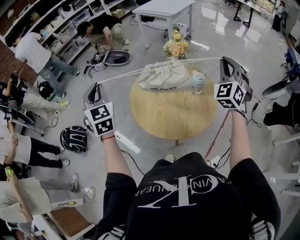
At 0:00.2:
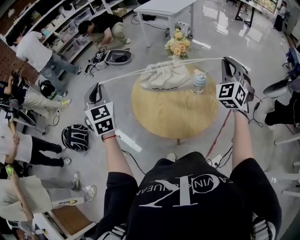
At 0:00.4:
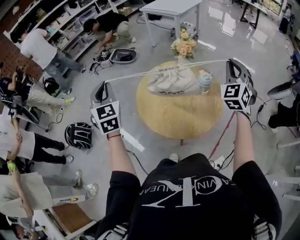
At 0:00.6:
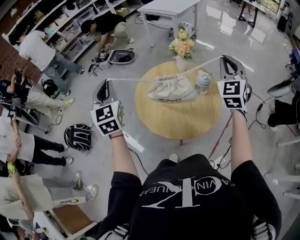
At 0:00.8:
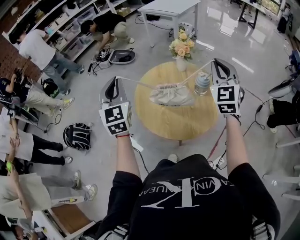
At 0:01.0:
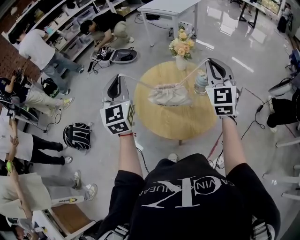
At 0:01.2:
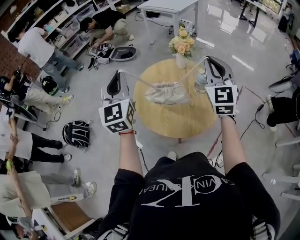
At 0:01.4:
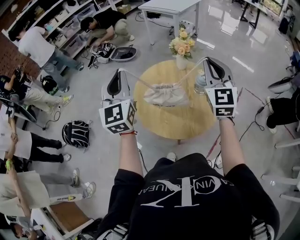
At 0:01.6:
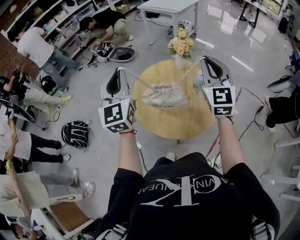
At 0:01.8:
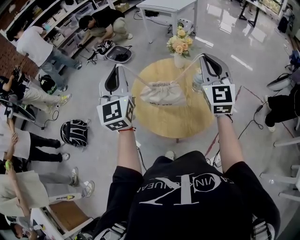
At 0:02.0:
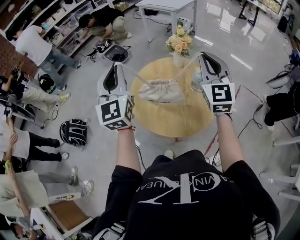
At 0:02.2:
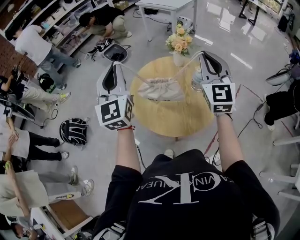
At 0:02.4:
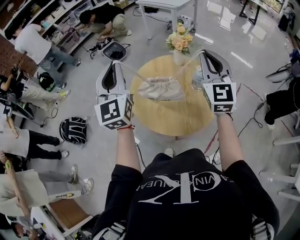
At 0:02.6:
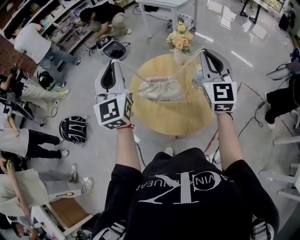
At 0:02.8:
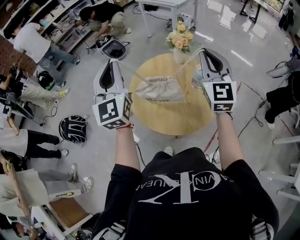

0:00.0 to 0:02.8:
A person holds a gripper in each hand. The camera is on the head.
0:00.0 to 0:01.4: The left gripper is displaced to the right by some 10 cm, and rotates approximately 30 degrees. The right gripper is displaced to the left by approximately 10 cm, and swivels approximately 40 degrees.
0:01.4 to 0:02.8: The grippers move only a little.

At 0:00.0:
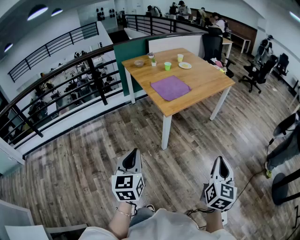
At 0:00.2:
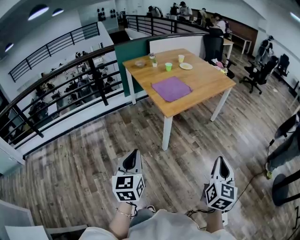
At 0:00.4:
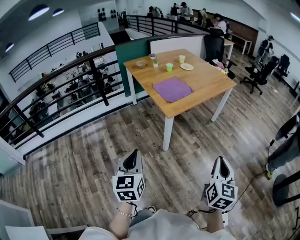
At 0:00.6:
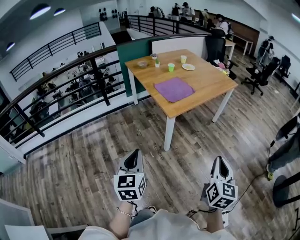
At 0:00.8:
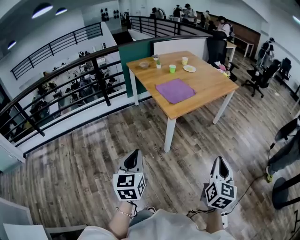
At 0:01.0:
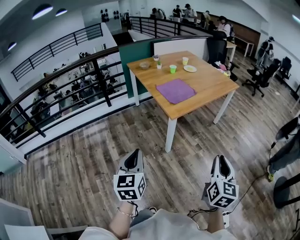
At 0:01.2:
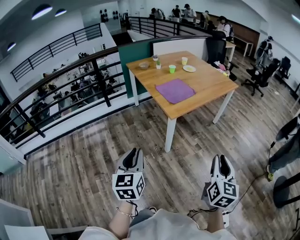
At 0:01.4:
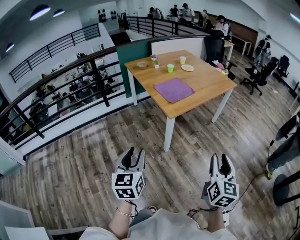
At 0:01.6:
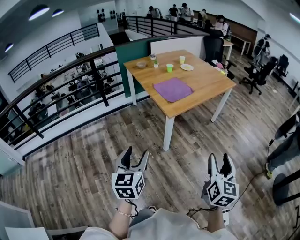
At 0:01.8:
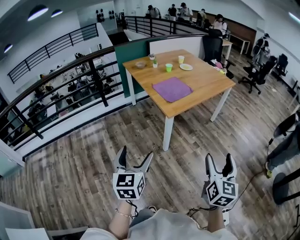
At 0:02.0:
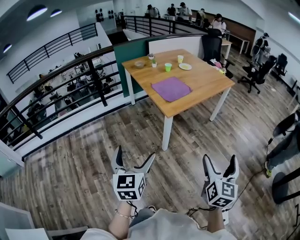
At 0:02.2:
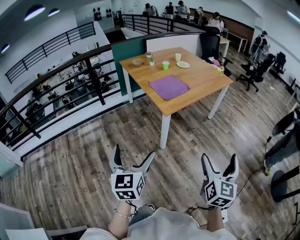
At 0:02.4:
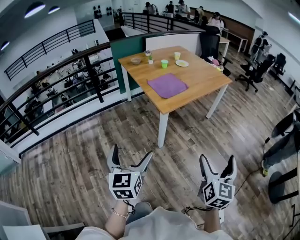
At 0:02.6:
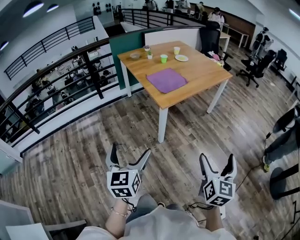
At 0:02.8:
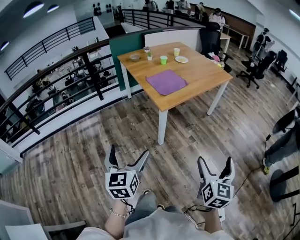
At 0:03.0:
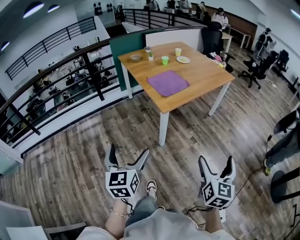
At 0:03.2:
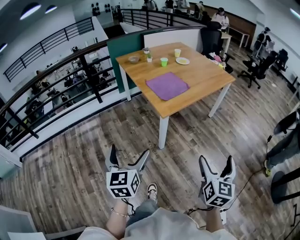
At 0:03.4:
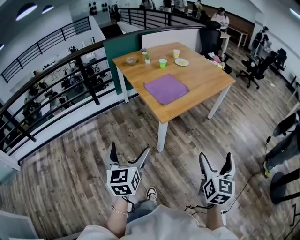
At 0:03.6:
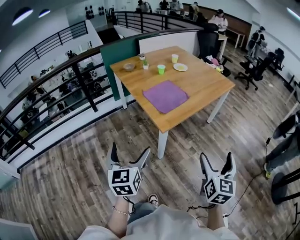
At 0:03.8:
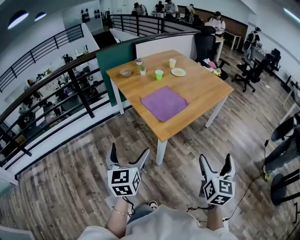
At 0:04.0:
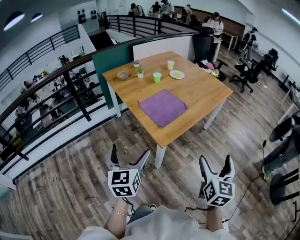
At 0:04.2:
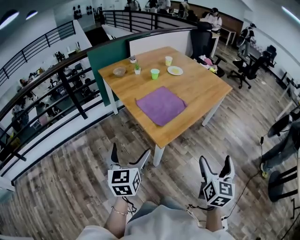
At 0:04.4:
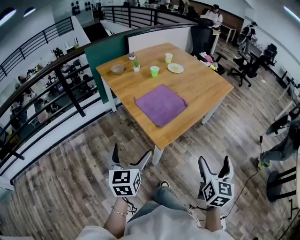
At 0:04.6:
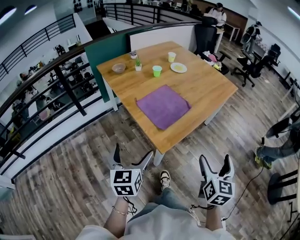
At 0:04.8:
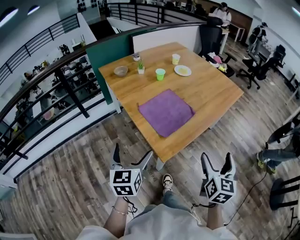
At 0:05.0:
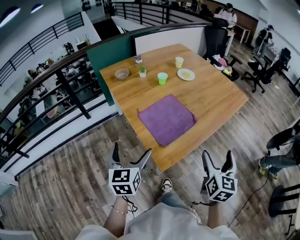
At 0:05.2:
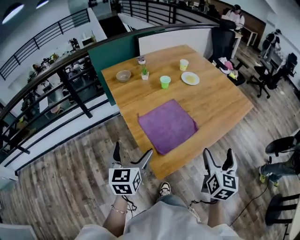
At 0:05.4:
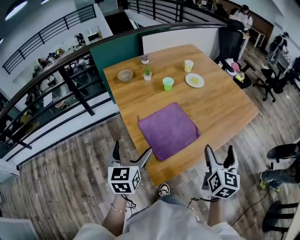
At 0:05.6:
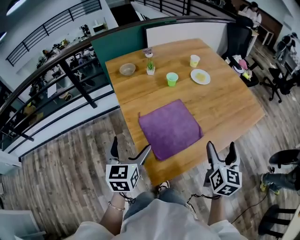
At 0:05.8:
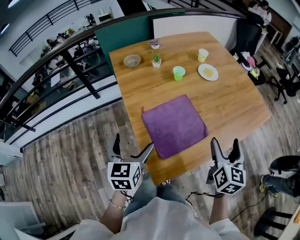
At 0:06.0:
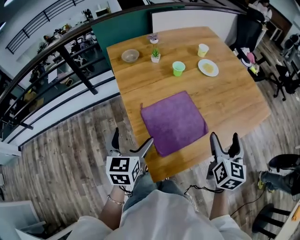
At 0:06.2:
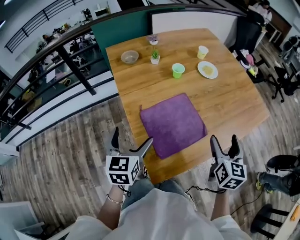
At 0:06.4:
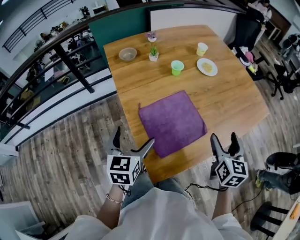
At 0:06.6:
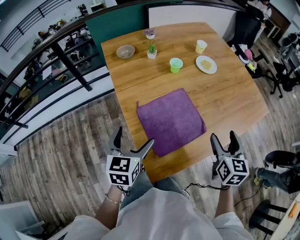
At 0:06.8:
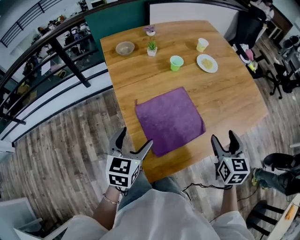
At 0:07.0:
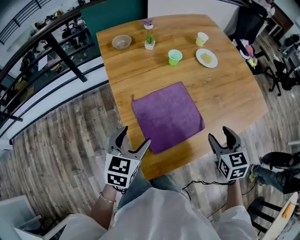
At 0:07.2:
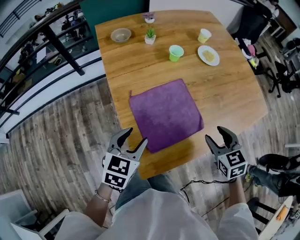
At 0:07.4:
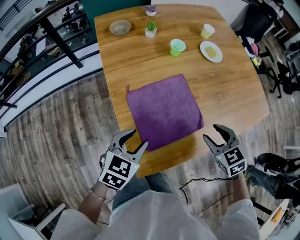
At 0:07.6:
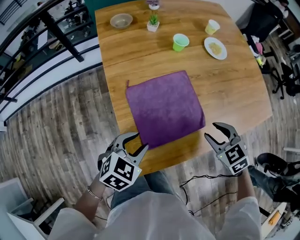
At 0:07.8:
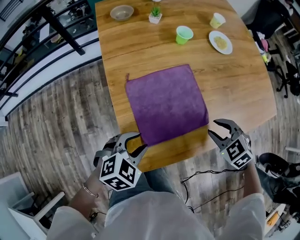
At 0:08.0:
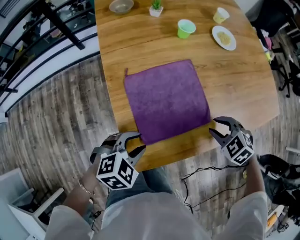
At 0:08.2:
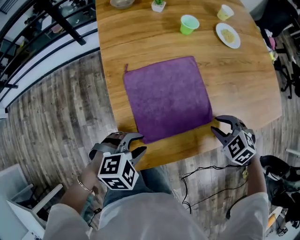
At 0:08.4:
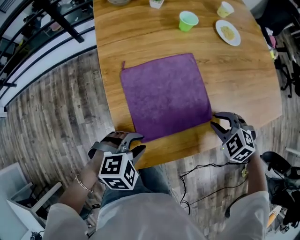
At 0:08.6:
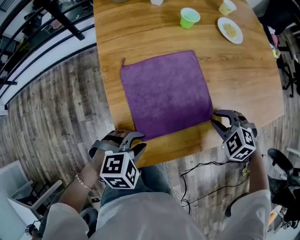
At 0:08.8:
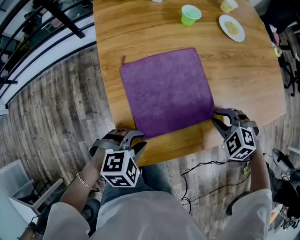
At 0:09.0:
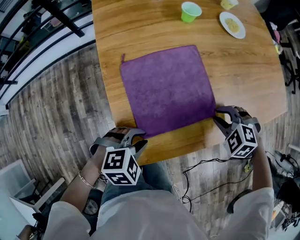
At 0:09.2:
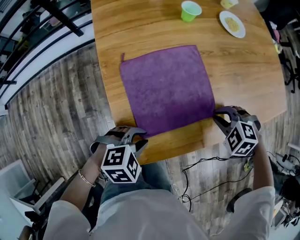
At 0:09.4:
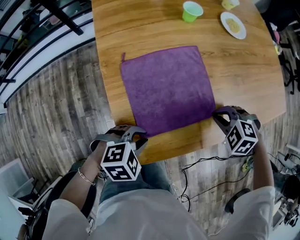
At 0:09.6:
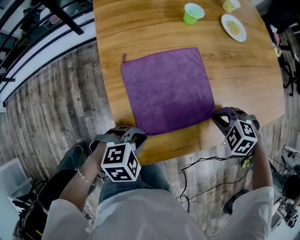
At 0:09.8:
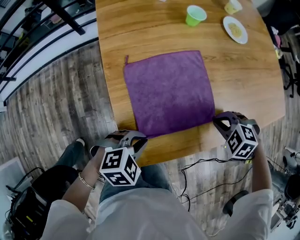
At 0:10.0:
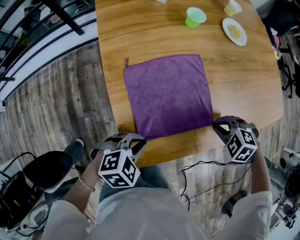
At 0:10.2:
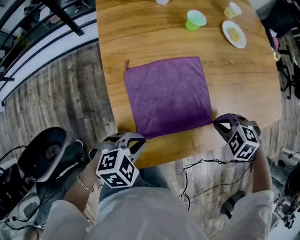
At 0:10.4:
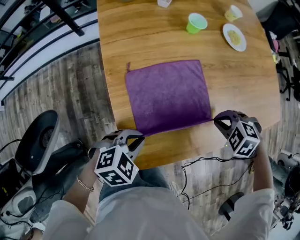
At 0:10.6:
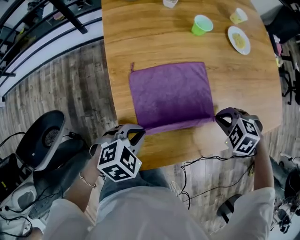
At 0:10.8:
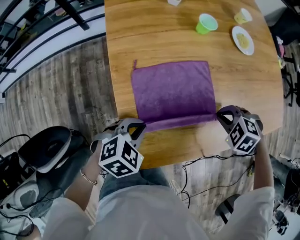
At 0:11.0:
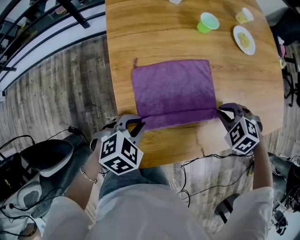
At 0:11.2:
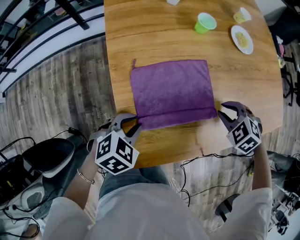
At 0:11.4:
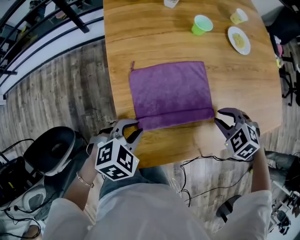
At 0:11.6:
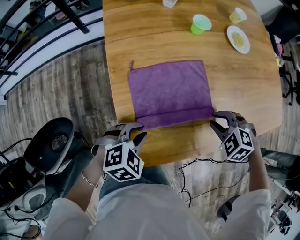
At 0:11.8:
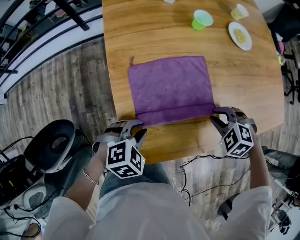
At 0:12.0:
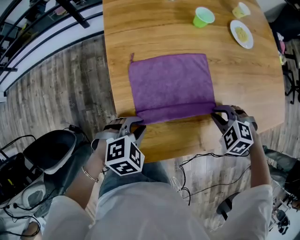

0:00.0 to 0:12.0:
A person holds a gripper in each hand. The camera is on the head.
0:00.0 to 0:01.6: The right gripper opens up, while the left gripper opens its fingers.
0:01.6 to 0:03.0: The right gripper opens. Meanwhile the left gripper opens up.
0:03.0 to 0:04.4: Both grippers travel together forward, some 30 cm.
0:04.4 to 0:06.0: Both grippers travel together forward, roughly 35 cm.
0:06.0 to 0:07.6: The right gripper is displaced downward by roughly 15 cm, angles its fingers downward, by roughly 40 degrees, and closes. Meanwhile the left gripper goes approximately 15 cm downward and to the right, changes its angle by about 40 degrees, and closes.
0:07.6 to 0:09.0: The two grippers go about 10 cm downward. The left gripper turns by approximately 30 degrees. The right gripper swivels roughly 40 degrees.
0:09.0 to 0:10.4: The left gripper ends up some 5 cm from where it was.
0:10.4 to 0:12.0: There are only small adjustments of the grippers.

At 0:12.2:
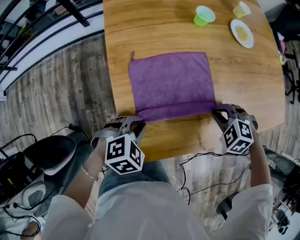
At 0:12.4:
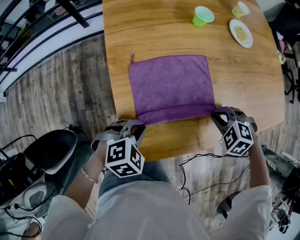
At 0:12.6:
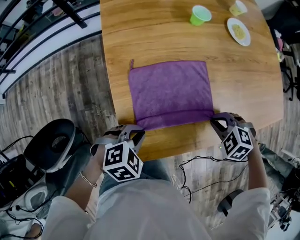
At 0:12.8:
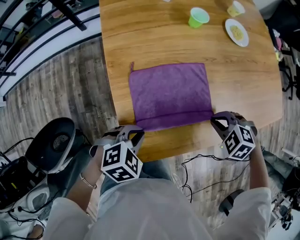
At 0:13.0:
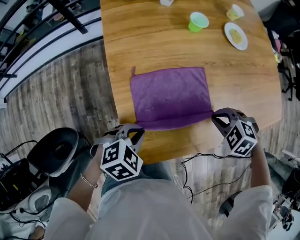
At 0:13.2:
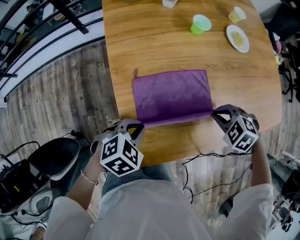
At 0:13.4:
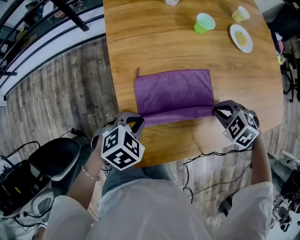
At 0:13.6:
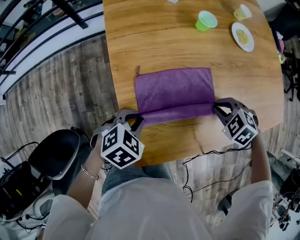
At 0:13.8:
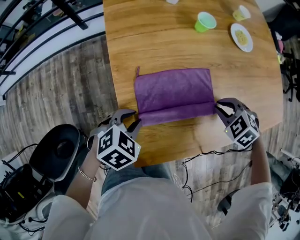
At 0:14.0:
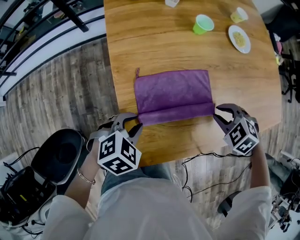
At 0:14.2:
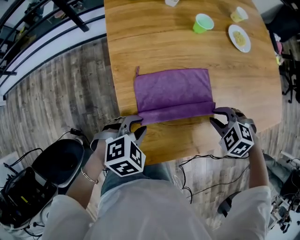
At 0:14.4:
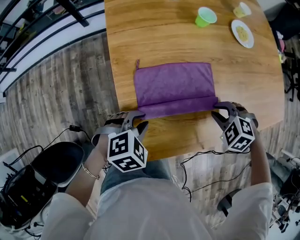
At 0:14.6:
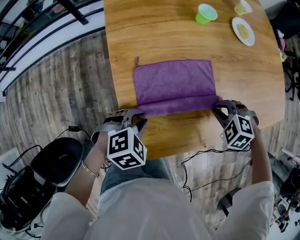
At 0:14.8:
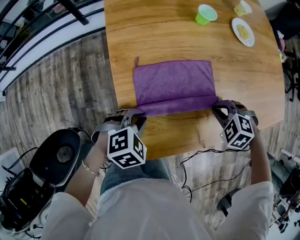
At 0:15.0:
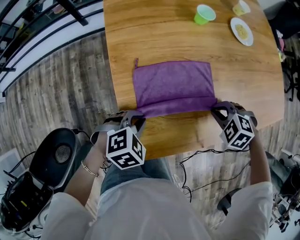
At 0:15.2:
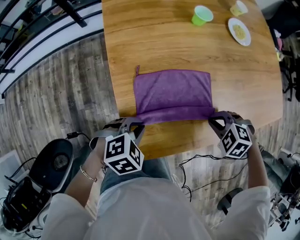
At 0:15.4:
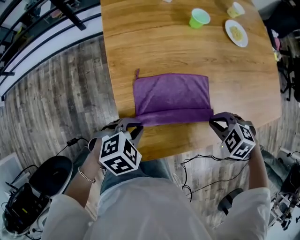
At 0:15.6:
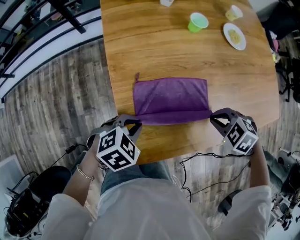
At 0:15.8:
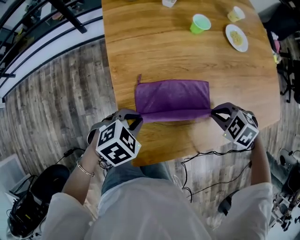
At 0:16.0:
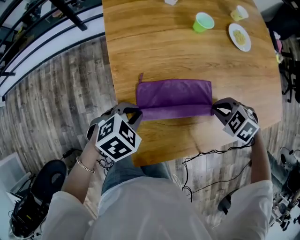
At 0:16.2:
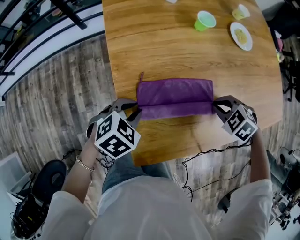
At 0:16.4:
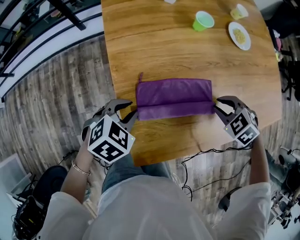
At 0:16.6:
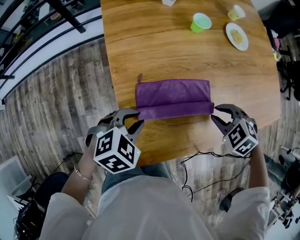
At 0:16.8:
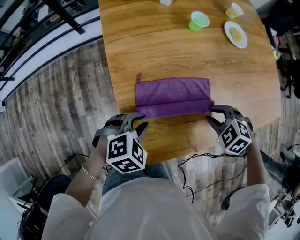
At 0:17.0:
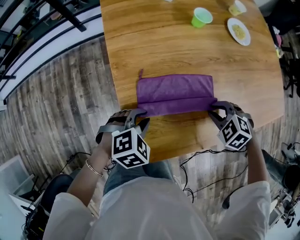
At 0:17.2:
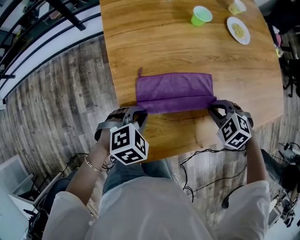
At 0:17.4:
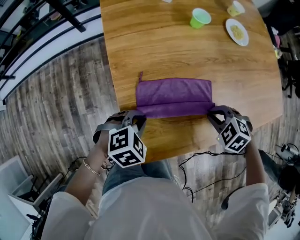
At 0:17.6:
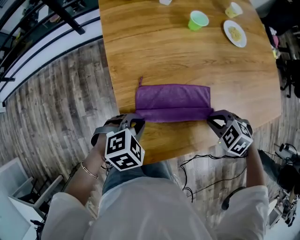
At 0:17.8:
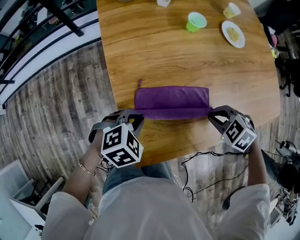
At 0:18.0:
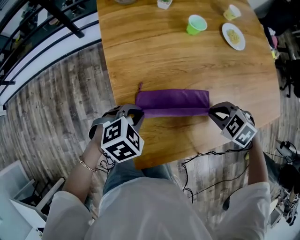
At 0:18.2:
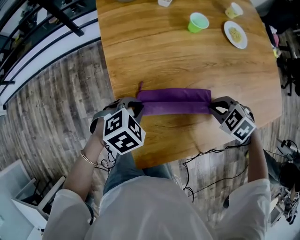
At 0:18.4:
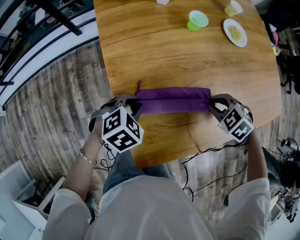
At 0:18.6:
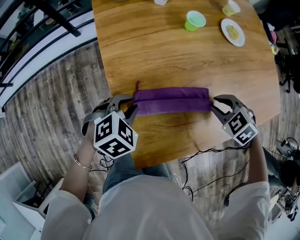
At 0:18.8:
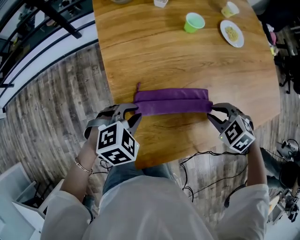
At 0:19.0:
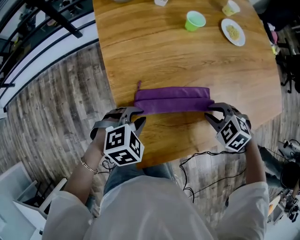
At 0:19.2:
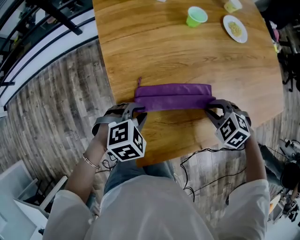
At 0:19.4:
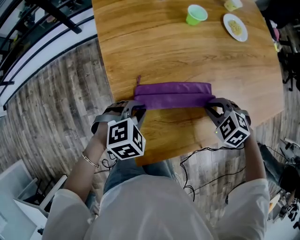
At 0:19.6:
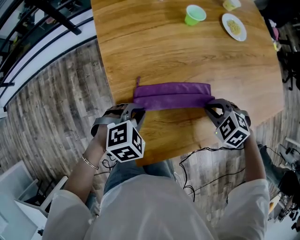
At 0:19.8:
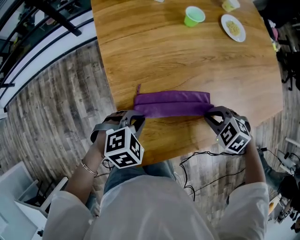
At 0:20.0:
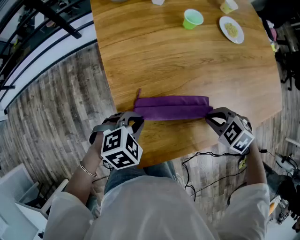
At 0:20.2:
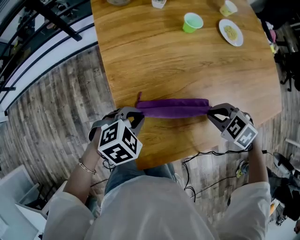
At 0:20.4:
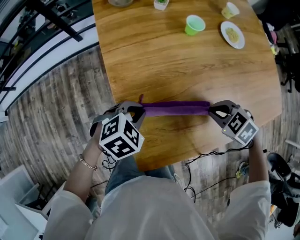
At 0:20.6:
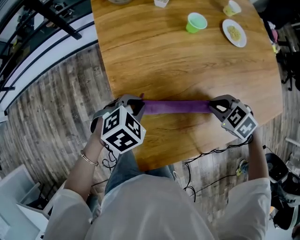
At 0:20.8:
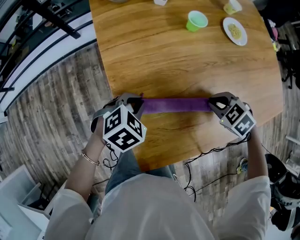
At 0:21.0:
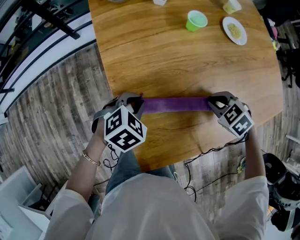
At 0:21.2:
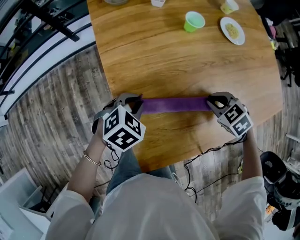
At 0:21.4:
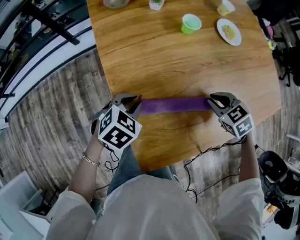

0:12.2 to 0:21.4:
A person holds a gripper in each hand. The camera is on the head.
0:12.2 to 0:13.8: The left gripper changes place by about 5 cm.
0:13.8 to 0:15.2: The left gripper shifts by about 5 cm. Meanwhile the right gripper ends up approximately 10 cm from where it was.
0:16.8 to 0:18.4: The left gripper changes place by about 10 cm; the right gripper ends up approximately 5 cm from where it was.
0:18.4 to 0:19.8: The grippers both shift backward by some 5 cm.
0:19.8 to 0:21.4: The right gripper moves about 10 cm, and changes its angle by roughly 30 degrees. Meanwhile the left gripper ends up about 10 cm from where it was.
